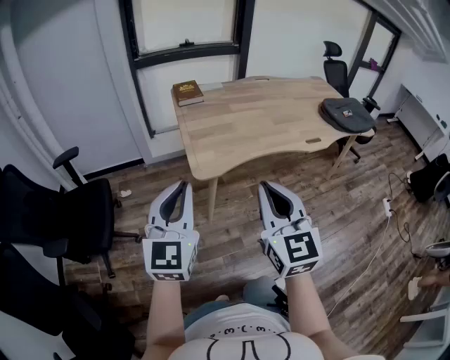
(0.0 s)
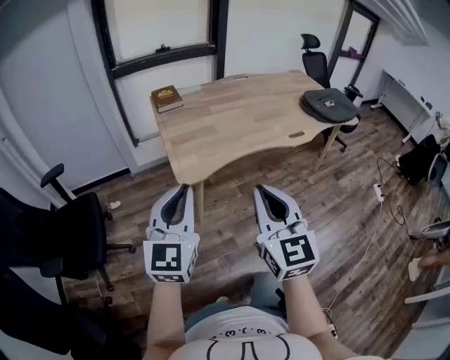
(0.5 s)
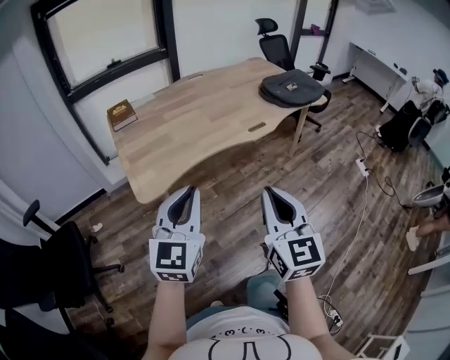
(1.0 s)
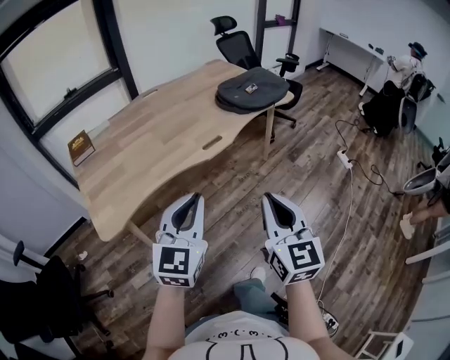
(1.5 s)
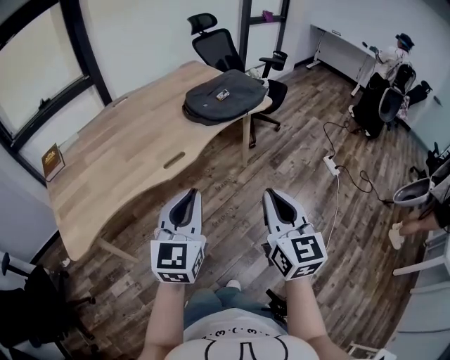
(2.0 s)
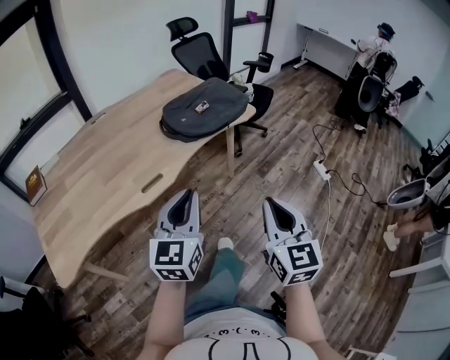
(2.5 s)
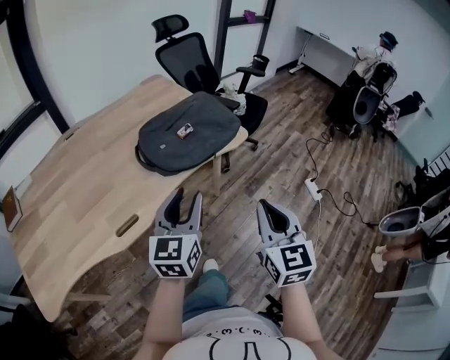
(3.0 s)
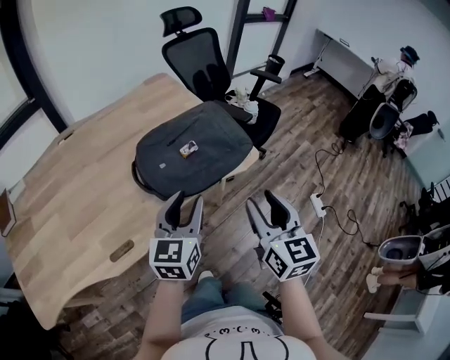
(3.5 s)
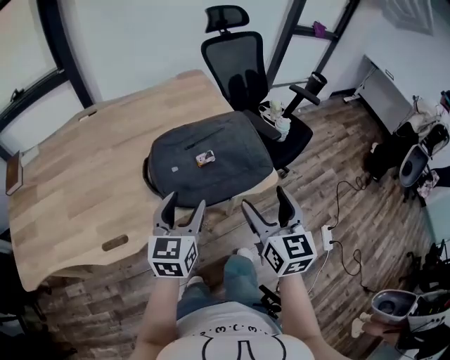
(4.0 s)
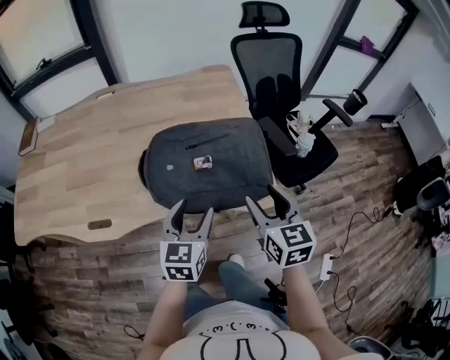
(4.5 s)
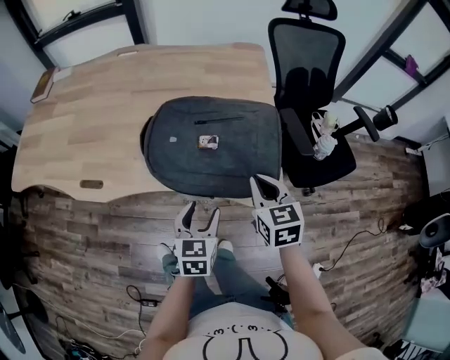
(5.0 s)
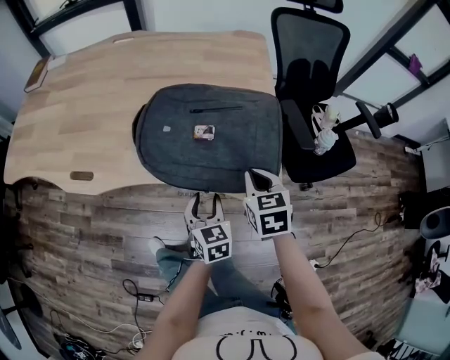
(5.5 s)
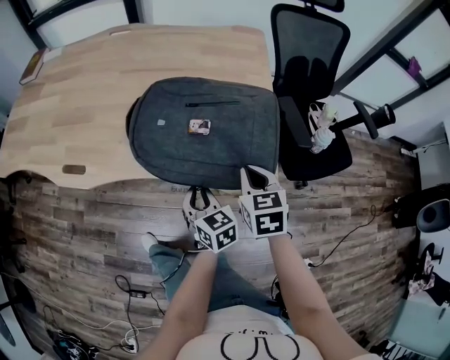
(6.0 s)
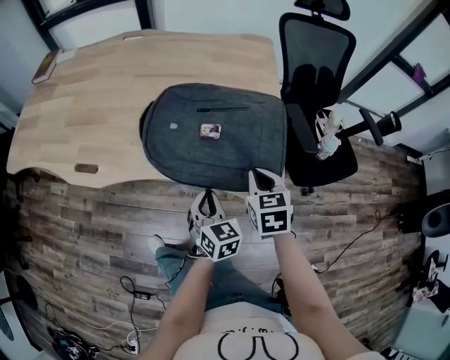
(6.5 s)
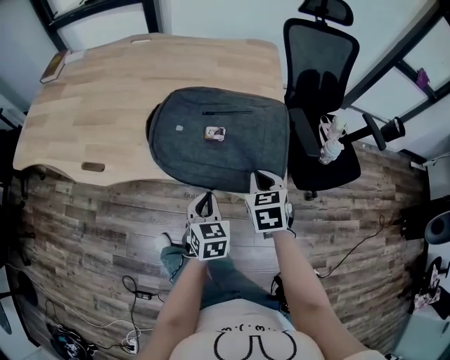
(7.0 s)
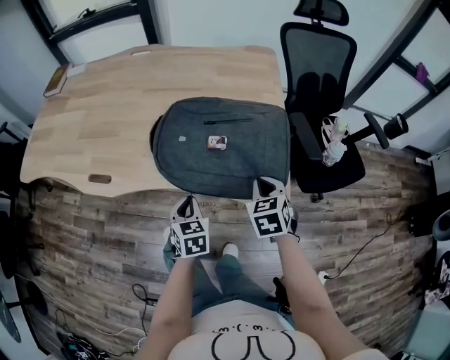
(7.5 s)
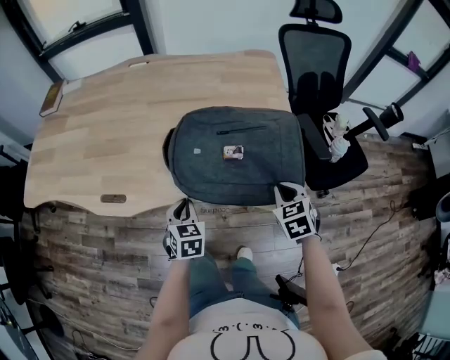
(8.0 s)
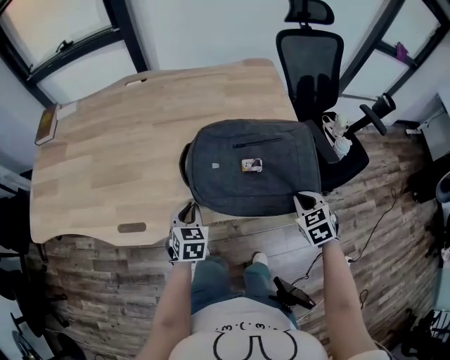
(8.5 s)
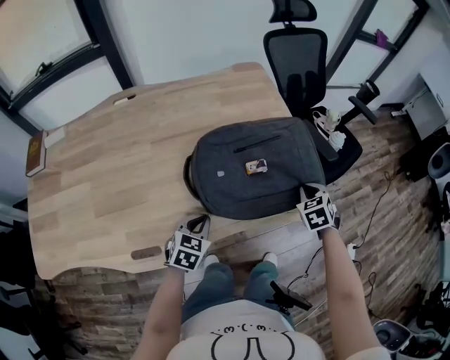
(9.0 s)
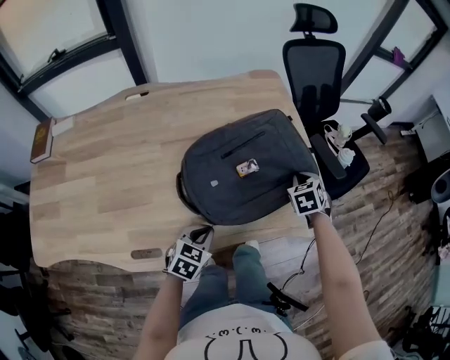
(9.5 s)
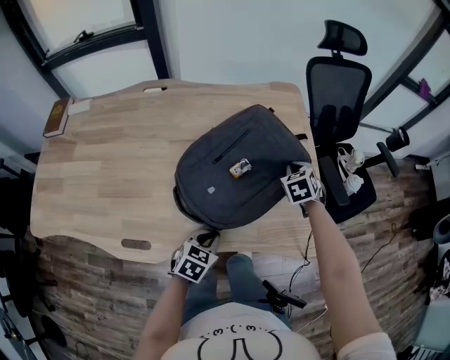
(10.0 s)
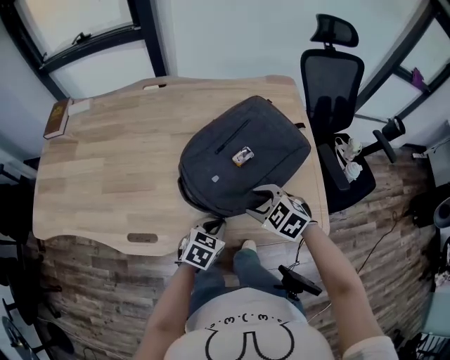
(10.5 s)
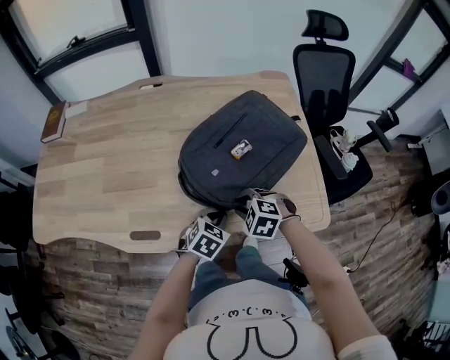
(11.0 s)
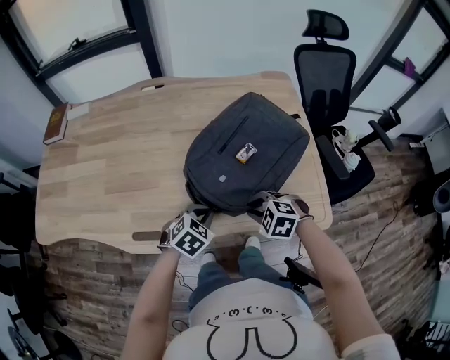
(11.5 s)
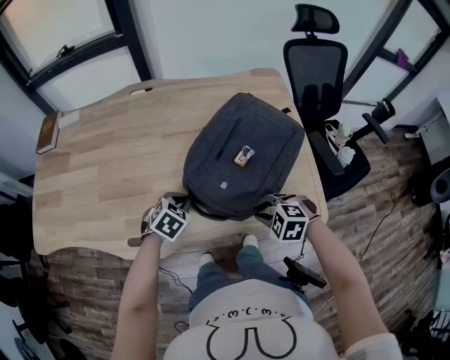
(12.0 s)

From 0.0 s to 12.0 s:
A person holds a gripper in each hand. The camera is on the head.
From 0.0 s to 2.0 s: The two grippers travel together, some 60 cm. The right gripper rotates roughly 30 degrees. Meanwhile the left gripper turns by about 30 degrees.
From 2.0 s to 4.0 s: Both grippers are carried forward, some 50 cm. The right gripper opens, while the left gripper changes its angle by some 20 degrees, and opens up.
From 4.0 s to 6.0 s: Both grippers travel together downward, some 20 cm. The right gripper changes its angle by some 40 degrees, and closes up; the left gripper swivels approximately 60 degrees, and closes its fingers.
From 6.0 s to 8.0 s: The left gripper shifts some 15 cm to the left.
From 8.0 s to 10.0 s: The right gripper shifts by about 25 cm. The left gripper changes place by about 5 cm, and turns by approximately 40 degrees.
From 10.0 s to 12.0 s: The left gripper shifts by about 10 cm, and swivels some 20 degrees, while the right gripper ends up roughly 25 cm from where it was, and rotates approximately 50 degrees.

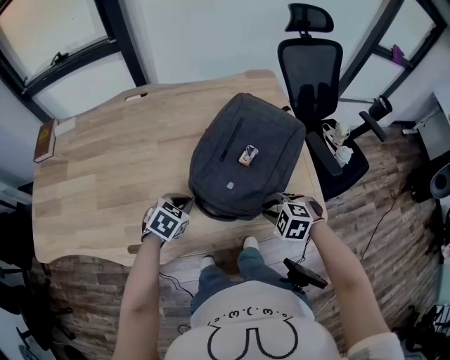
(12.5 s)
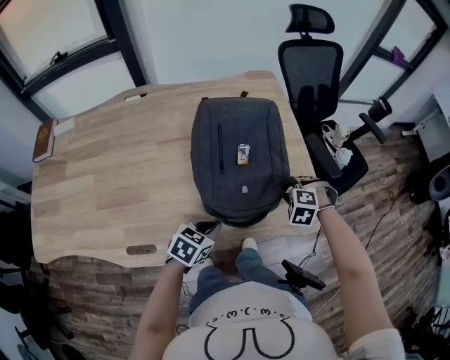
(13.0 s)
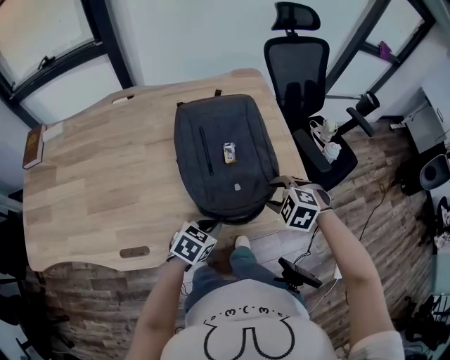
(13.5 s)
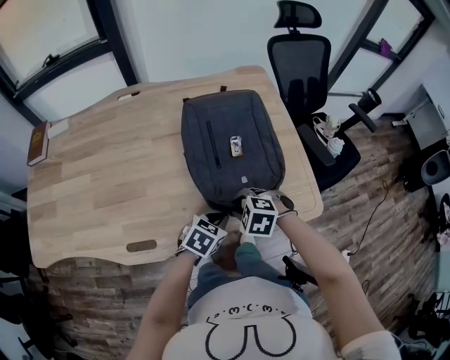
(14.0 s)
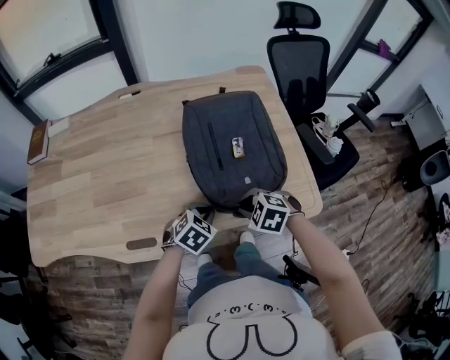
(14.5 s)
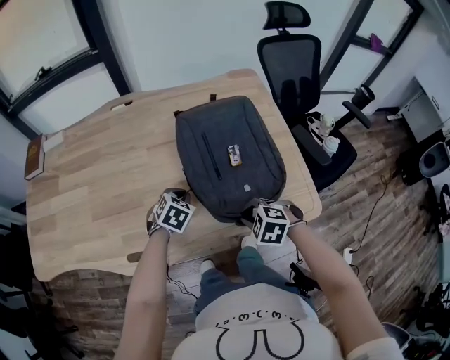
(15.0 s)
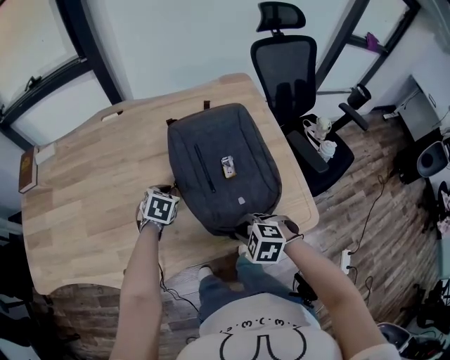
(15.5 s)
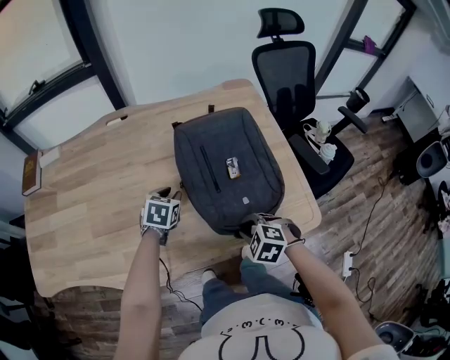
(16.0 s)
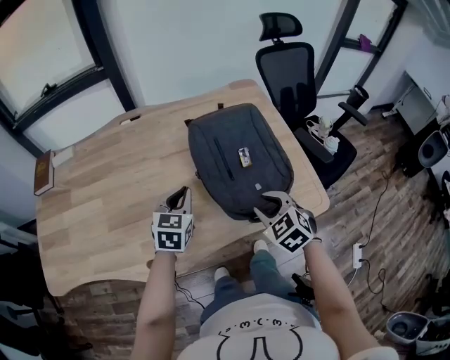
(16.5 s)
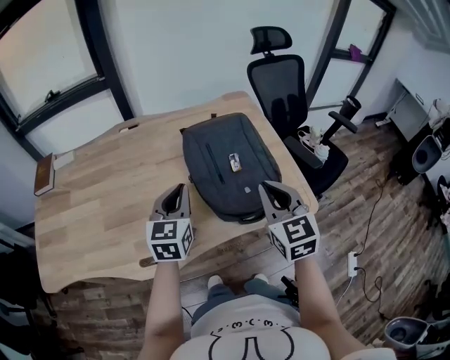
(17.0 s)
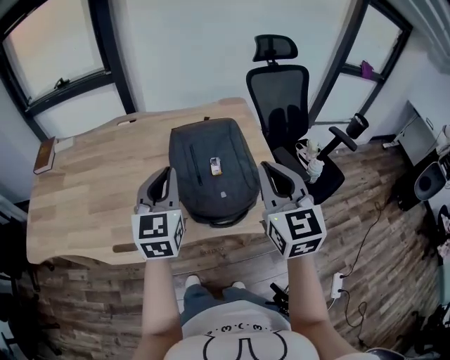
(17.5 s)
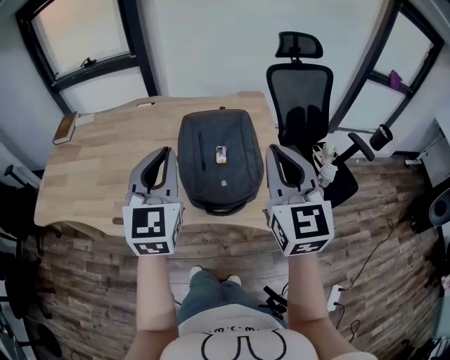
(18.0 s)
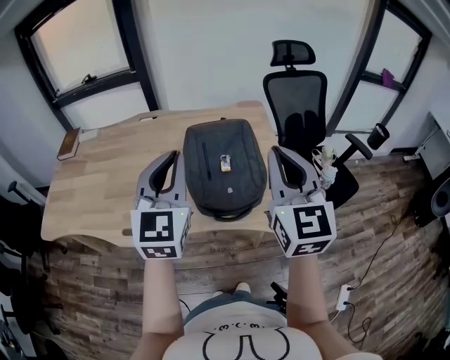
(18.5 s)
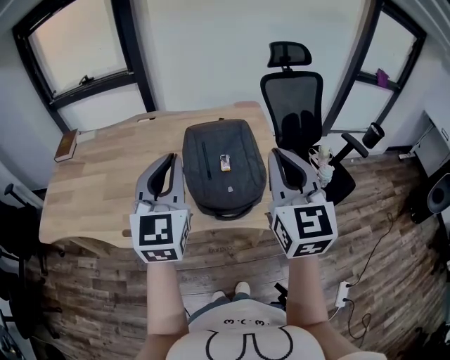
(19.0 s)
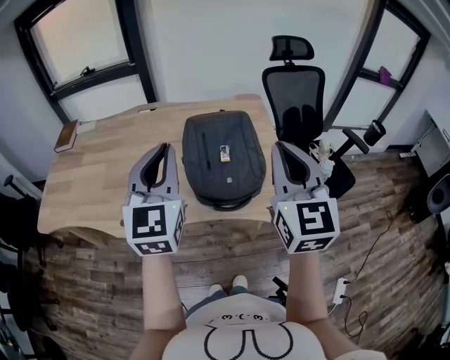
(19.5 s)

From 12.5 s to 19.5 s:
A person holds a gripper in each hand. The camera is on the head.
From 12.5 s to 14.5 s: The right gripper moves about 10 cm. The left gripper changes place by approximately 10 cm.
From 14.5 s to 16.0 s: The left gripper shifts some 20 cm forward and to the left, and changes its angle by approximately 20 degrees.
From 16.0 s to 17.5 s: The left gripper heads upward and backward, covering roughly 30 cm, and tilts its fingers approximately 40 degrees upward. The right gripper shifts some 35 cm upward, and tips its fingers upward by some 60 degrees.
From 17.5 s to 19.5 s: The left gripper is displaced upward and backward by roughly 15 cm. The right gripper moves upward and backward, roughly 10 cm.

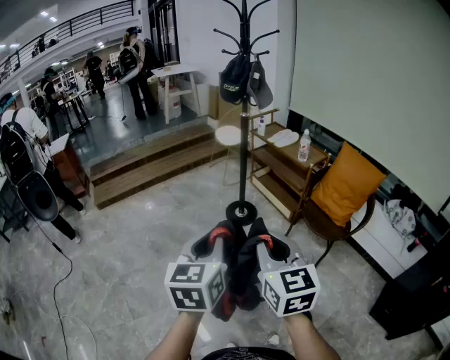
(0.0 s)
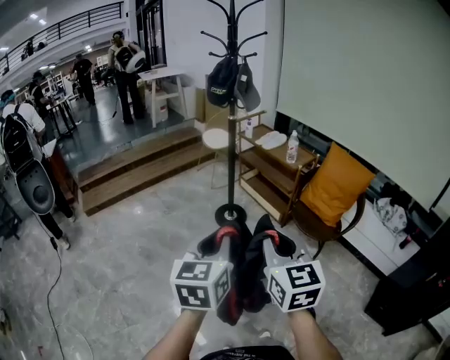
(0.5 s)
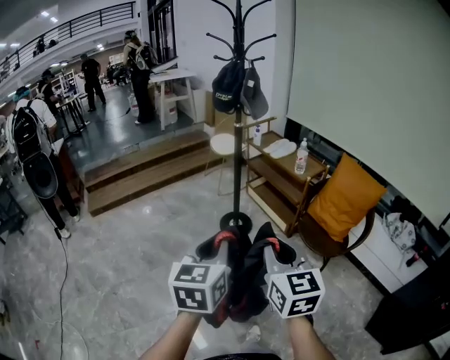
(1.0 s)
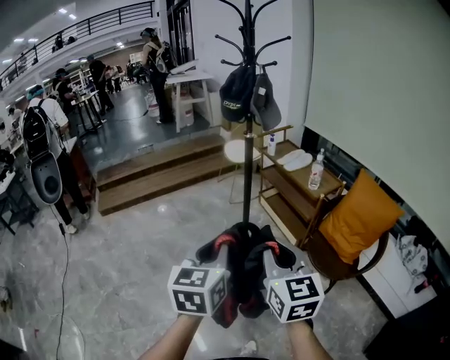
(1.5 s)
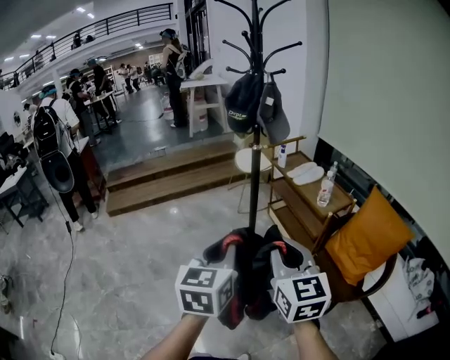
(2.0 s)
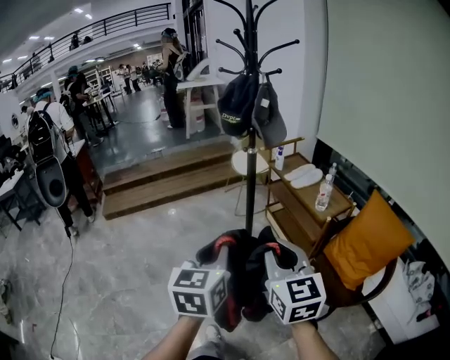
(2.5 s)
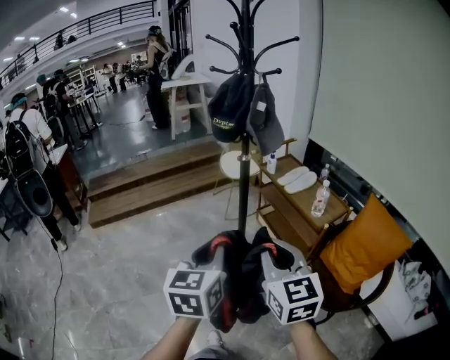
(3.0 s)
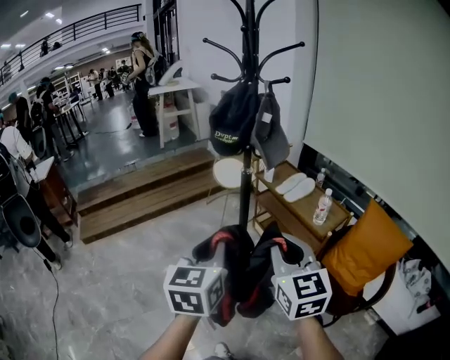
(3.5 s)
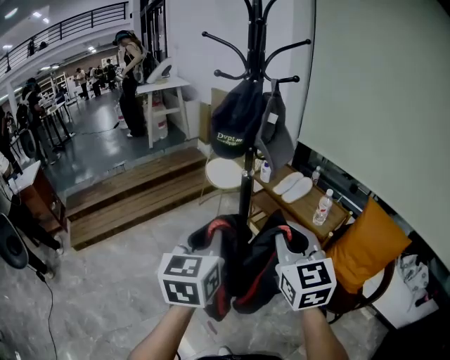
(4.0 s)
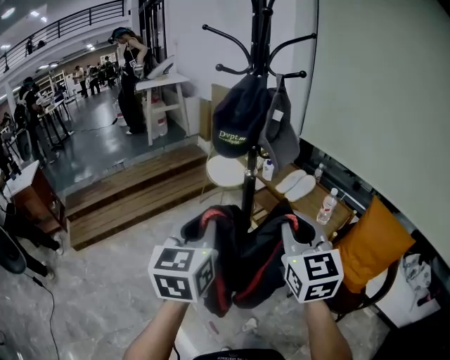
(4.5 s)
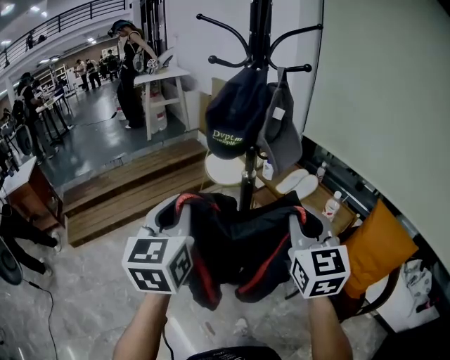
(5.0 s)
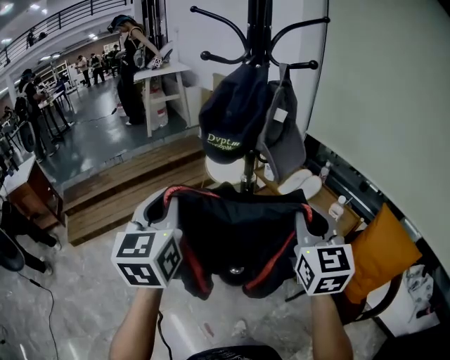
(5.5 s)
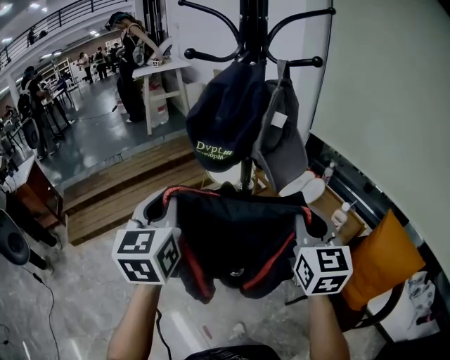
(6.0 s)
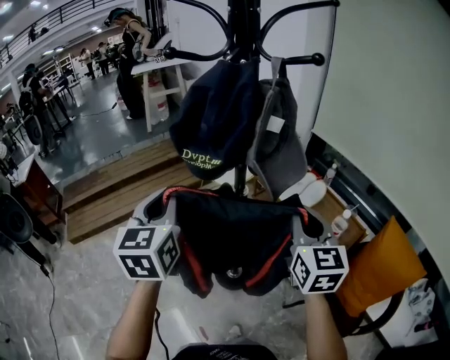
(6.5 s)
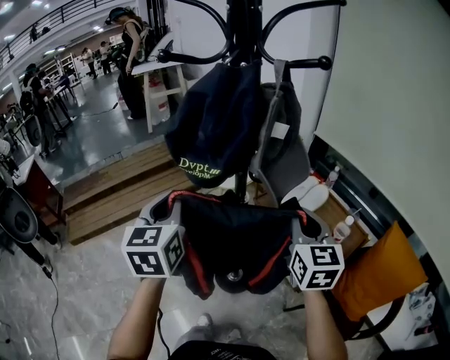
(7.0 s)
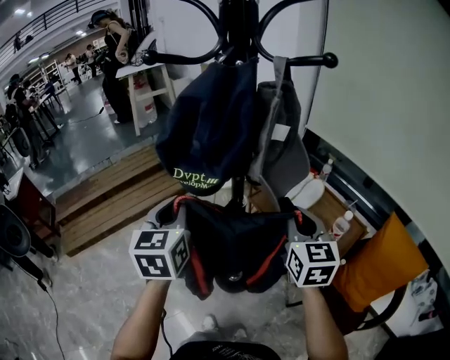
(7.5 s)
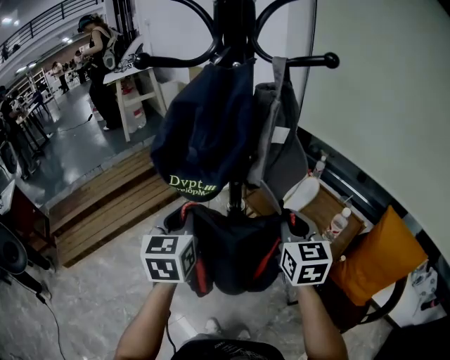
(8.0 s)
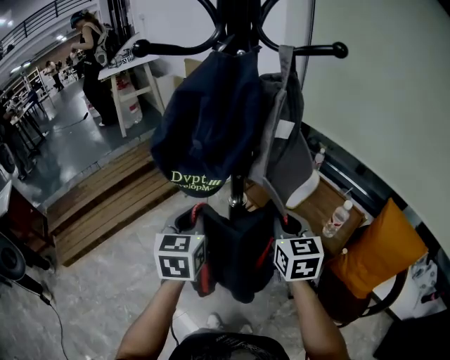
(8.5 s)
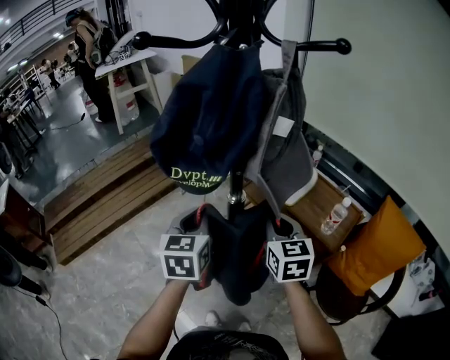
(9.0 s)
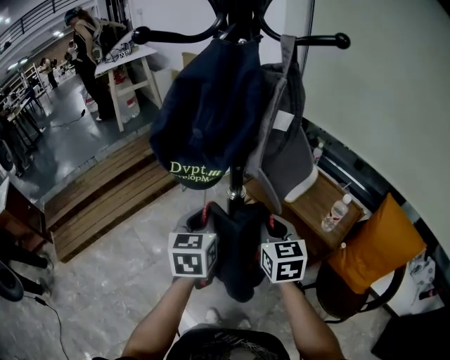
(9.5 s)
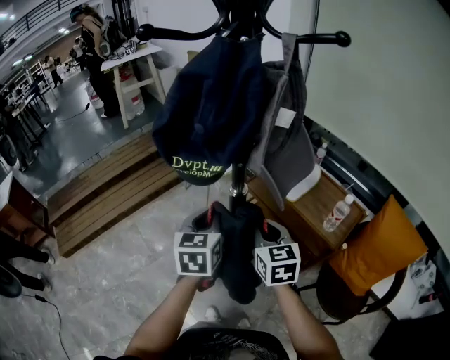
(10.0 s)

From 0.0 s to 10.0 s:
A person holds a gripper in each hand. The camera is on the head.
From 0.0 s to 2.0 s: Both grippers move forward and to the right, some 30 cm.
From 2.0 s to 4.0 s: The grippers both shift forward by approximately 25 cm.
From 4.0 s to 6.0 s: The right gripper moves forward and to the right, roughly 20 cm. The left gripper shifts approximately 20 cm forward.
From 6.0 s to 8.0 s: The grippers both shift forward and downward by roughly 15 cm.
From 8.0 s to 10.0 s: The left gripper is displaced downward and to the right by roughly 10 cm. Meanwhile the right gripper is displaced downward and to the left by roughly 10 cm.
